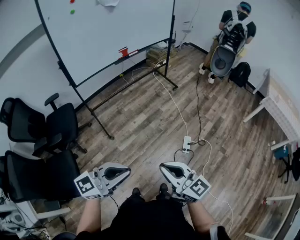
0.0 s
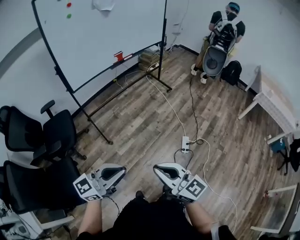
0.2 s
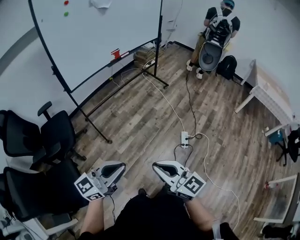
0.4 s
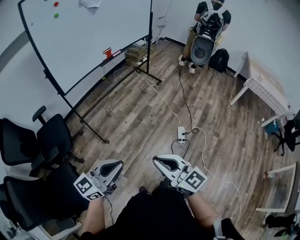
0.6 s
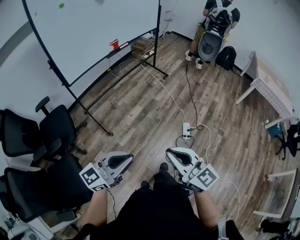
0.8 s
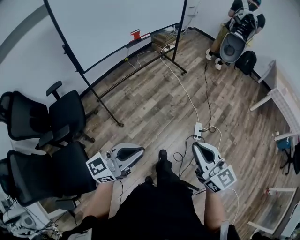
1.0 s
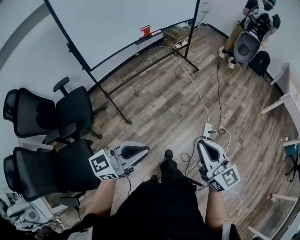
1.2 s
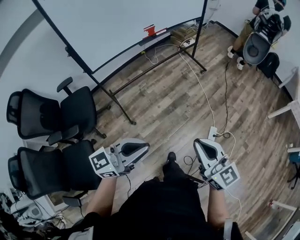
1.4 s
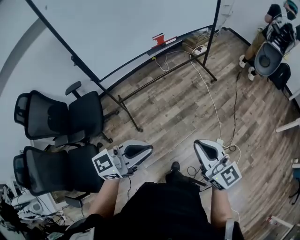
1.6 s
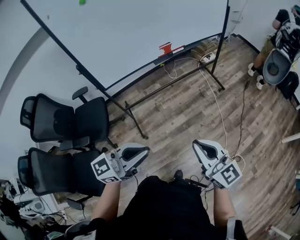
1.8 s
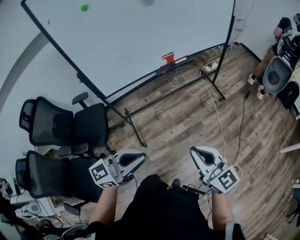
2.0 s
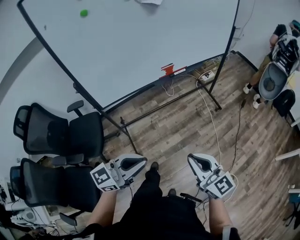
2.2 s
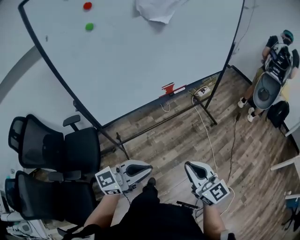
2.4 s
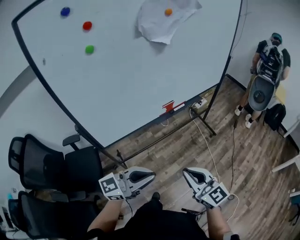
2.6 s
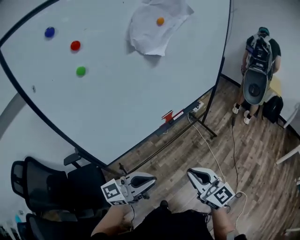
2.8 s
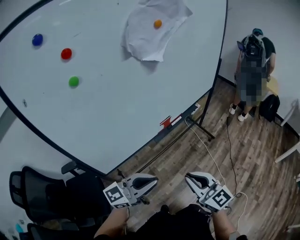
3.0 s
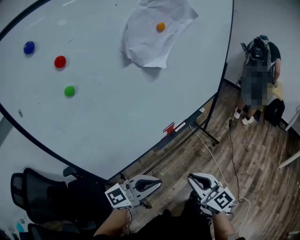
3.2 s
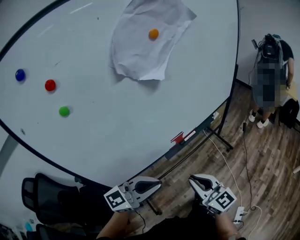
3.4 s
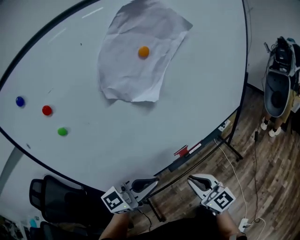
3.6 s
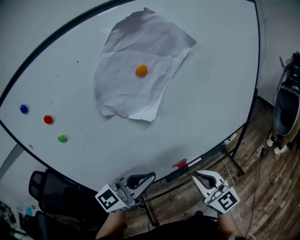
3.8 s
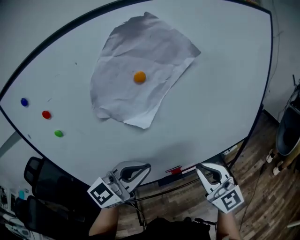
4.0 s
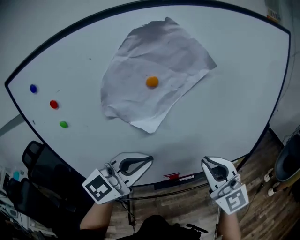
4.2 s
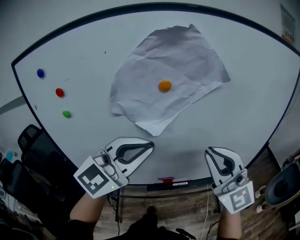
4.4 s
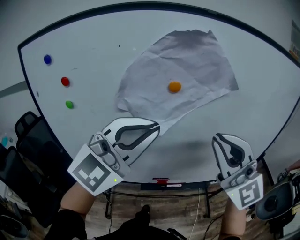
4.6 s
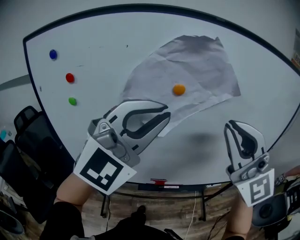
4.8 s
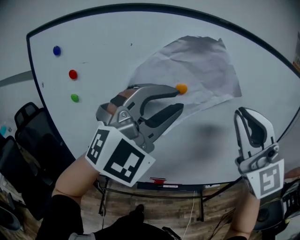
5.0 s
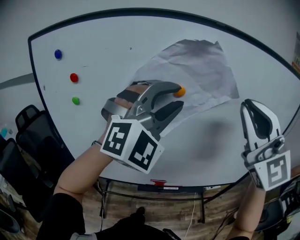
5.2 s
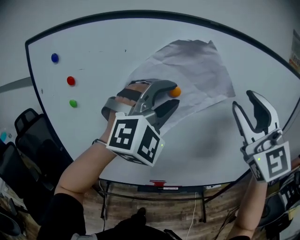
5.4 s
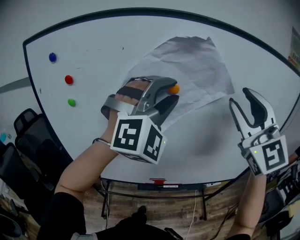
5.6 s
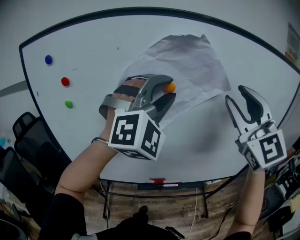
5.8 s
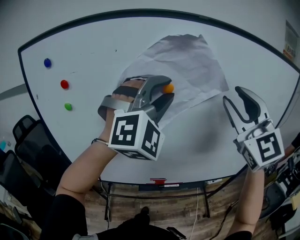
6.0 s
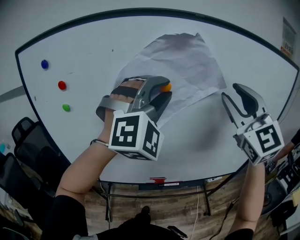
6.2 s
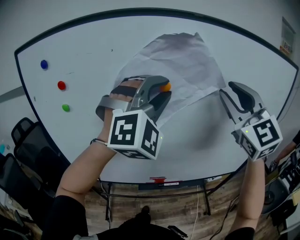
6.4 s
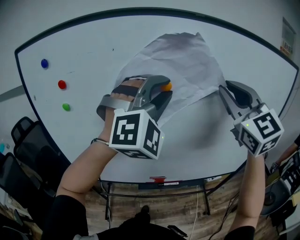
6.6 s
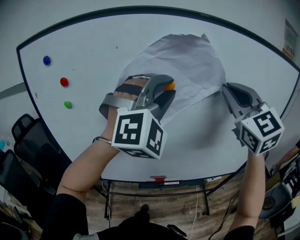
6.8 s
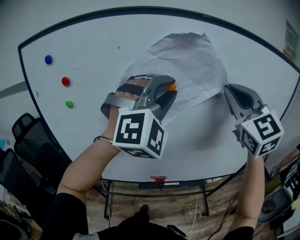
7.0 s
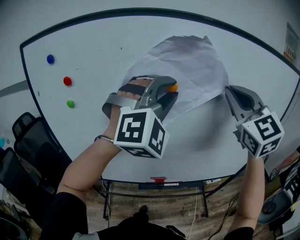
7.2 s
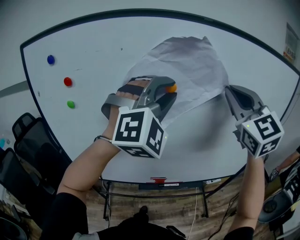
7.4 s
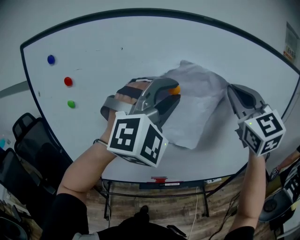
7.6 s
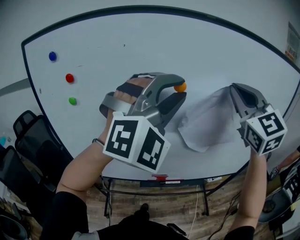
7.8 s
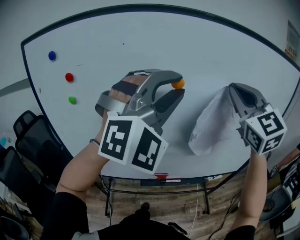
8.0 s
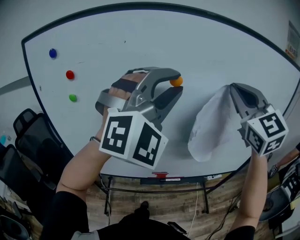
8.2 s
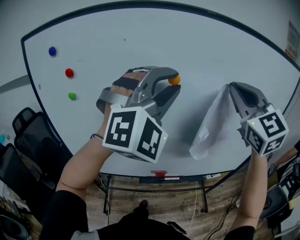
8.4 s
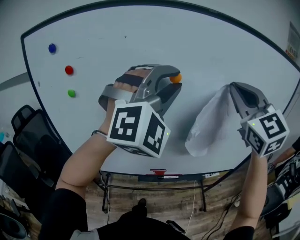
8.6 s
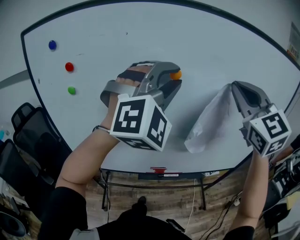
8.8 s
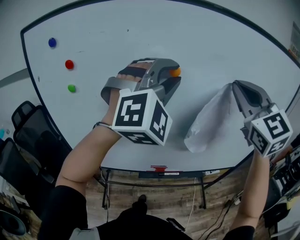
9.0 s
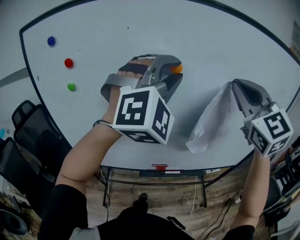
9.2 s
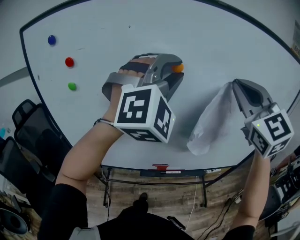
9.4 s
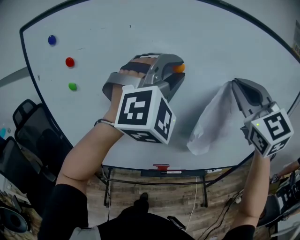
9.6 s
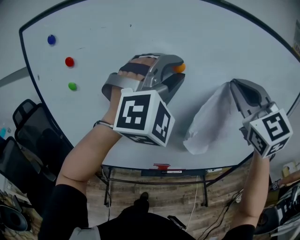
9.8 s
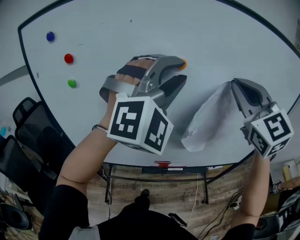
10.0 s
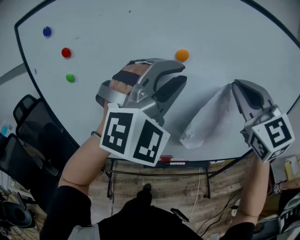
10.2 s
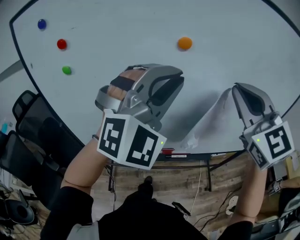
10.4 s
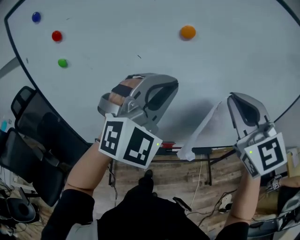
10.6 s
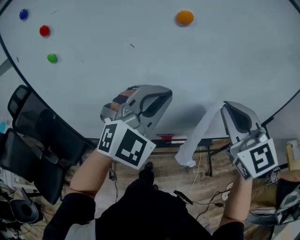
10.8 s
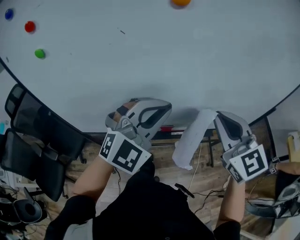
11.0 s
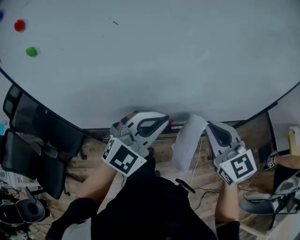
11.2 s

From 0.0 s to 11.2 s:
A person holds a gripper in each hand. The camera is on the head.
From 0.0 s to 1.6 s: The left gripper shifts approximately 25 cm forward and to the left. The right gripper moves forward, approximately 25 cm.
From 1.6 s to 3.2 s: The grippers both shift forward and to the left by approximately 40 cm.
From 3.2 s to 4.8 s: Both grippers move upward, approximately 35 cm. The left gripper changes its angle by approximately 90 degrees, while the right gripper turns by some 60 degrees.
From 4.8 s to 6.4 s: The left gripper goes roughly 10 cm forward, and turns by roughly 30 degrees. The right gripper goes approximately 10 cm forward and to the right, and opens.
From 6.4 s to 8.0 s: The left gripper goes some 5 cm backward. Meanwhile the right gripper closes its fingers.
From 8.0 s to 9.6 s: The left gripper moves forward, some 5 cm.
From 9.6 s to 11.2 s: Both grippers travel together downward, approximately 30 cm. The left gripper rolls counterclockwise, seen from behind, by about 40 degrees, and closes; the right gripper swivels some 30 degrees.

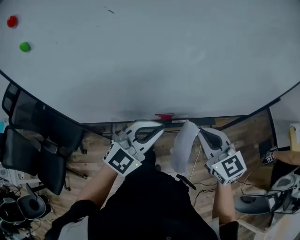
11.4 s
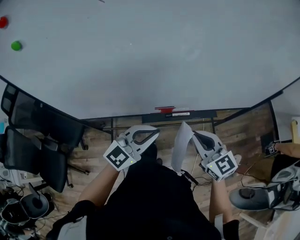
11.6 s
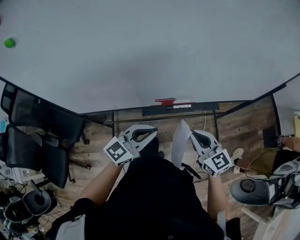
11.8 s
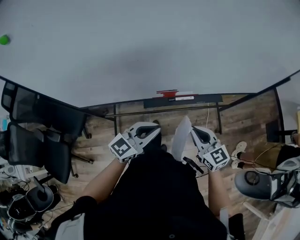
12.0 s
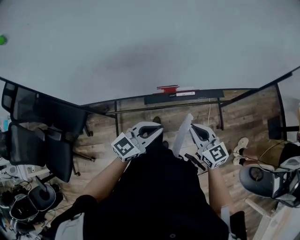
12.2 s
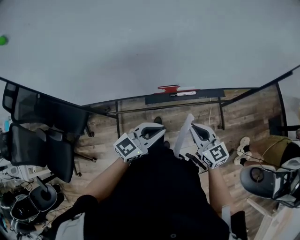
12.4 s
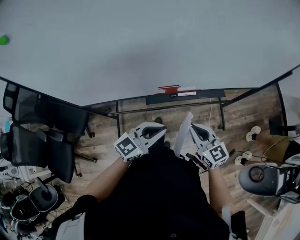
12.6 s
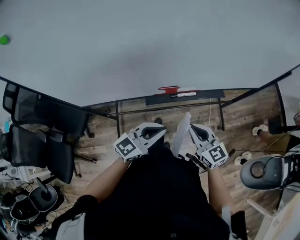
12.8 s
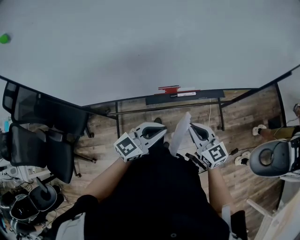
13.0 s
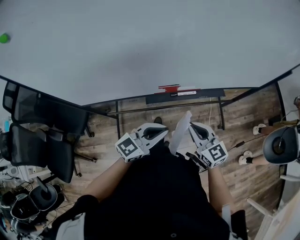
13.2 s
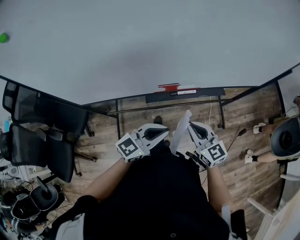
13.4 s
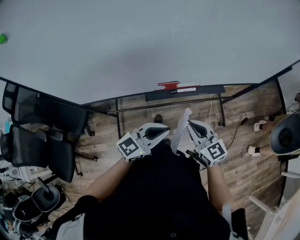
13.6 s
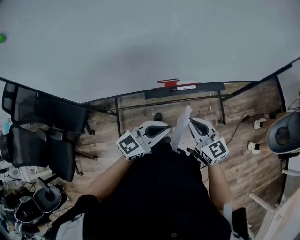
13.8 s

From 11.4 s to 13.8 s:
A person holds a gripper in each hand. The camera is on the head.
From 11.4 s to 12.6 s: The two grippers go about 15 cm downward. The left gripper swivels some 30 degrees.
From 12.6 s to 13.8 s: The grippers move only a little.

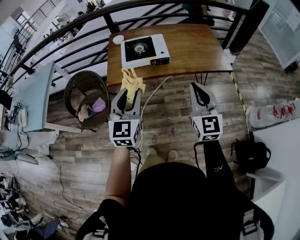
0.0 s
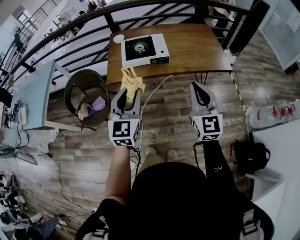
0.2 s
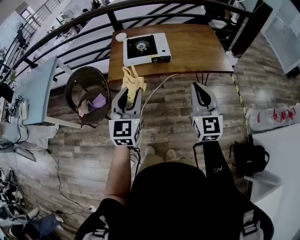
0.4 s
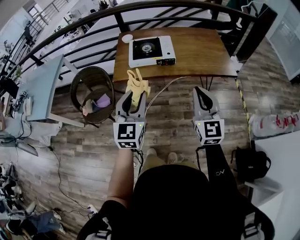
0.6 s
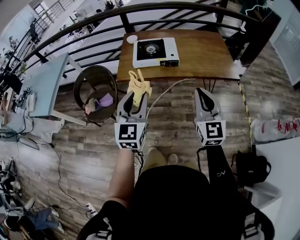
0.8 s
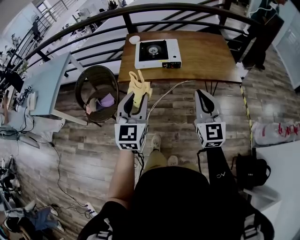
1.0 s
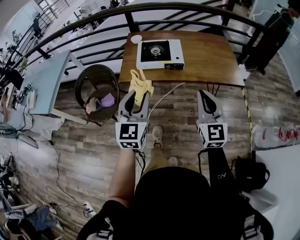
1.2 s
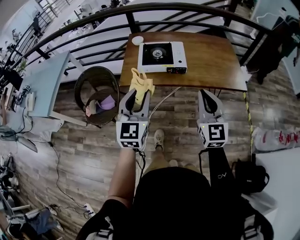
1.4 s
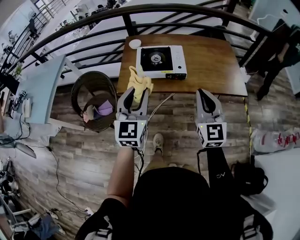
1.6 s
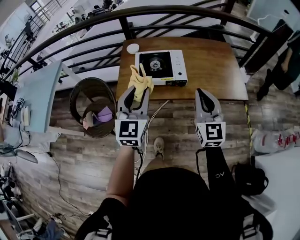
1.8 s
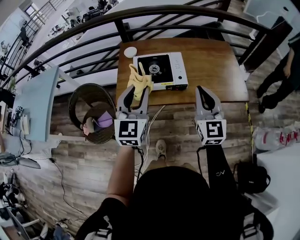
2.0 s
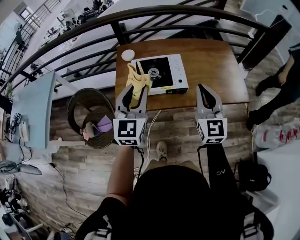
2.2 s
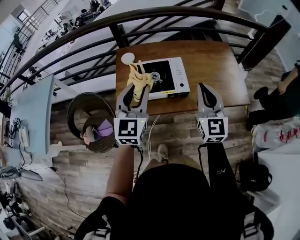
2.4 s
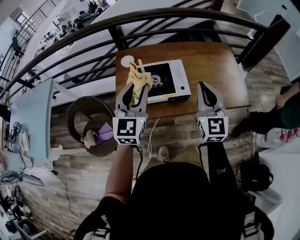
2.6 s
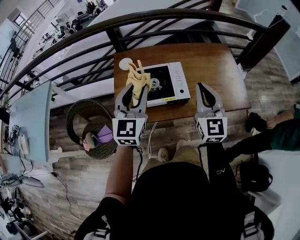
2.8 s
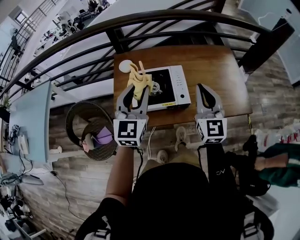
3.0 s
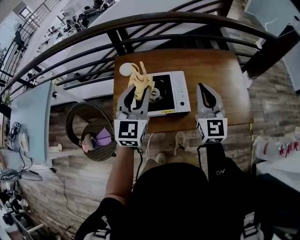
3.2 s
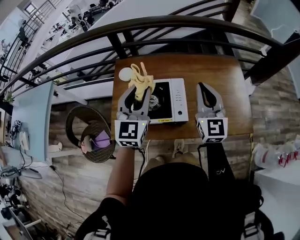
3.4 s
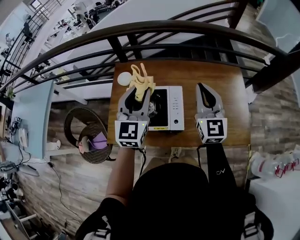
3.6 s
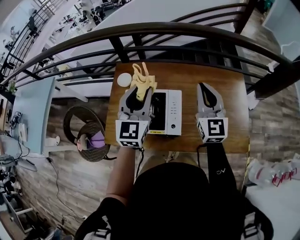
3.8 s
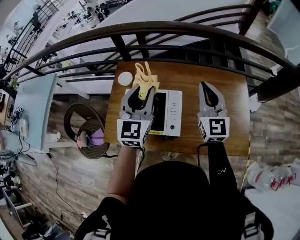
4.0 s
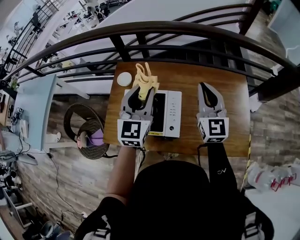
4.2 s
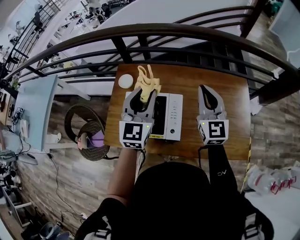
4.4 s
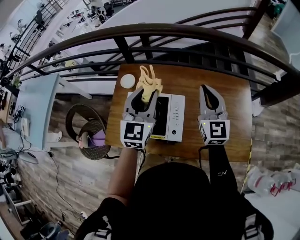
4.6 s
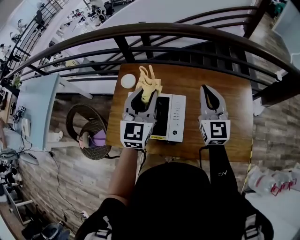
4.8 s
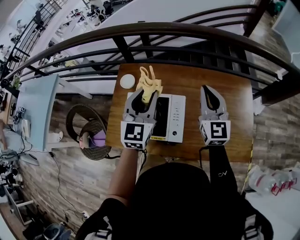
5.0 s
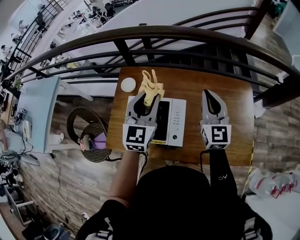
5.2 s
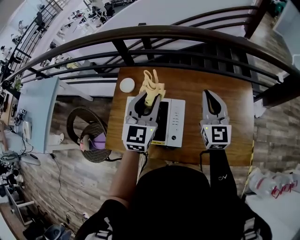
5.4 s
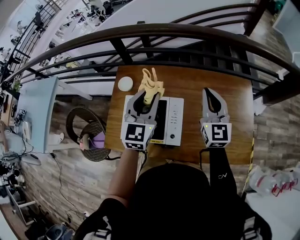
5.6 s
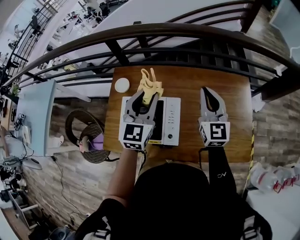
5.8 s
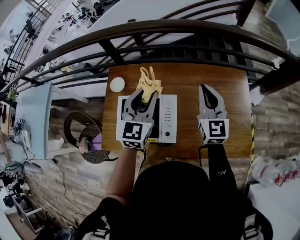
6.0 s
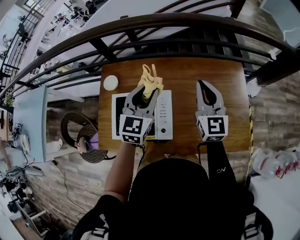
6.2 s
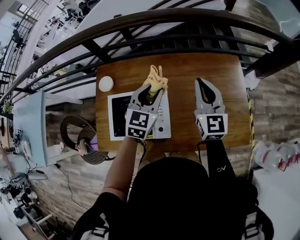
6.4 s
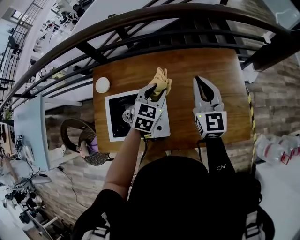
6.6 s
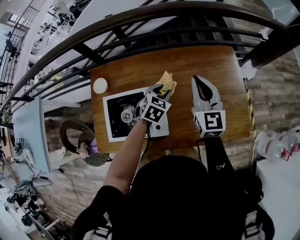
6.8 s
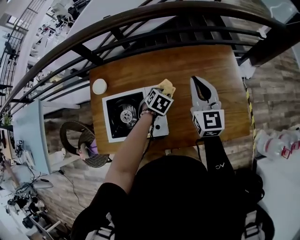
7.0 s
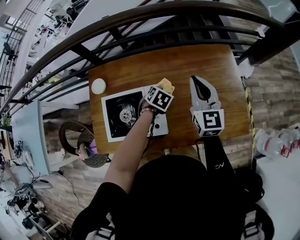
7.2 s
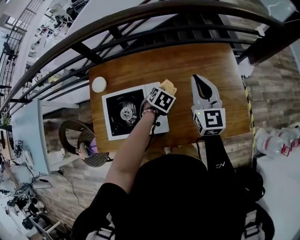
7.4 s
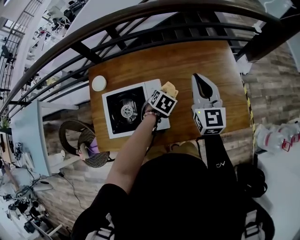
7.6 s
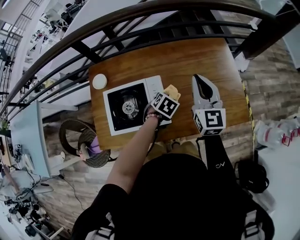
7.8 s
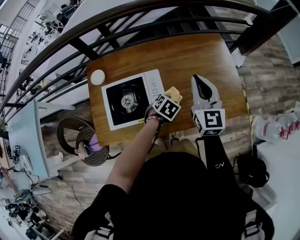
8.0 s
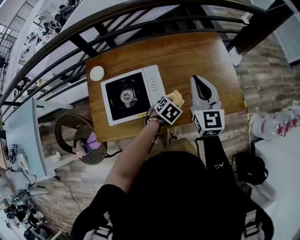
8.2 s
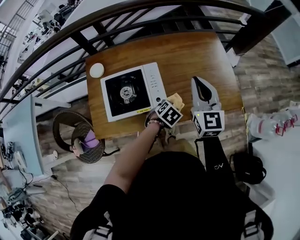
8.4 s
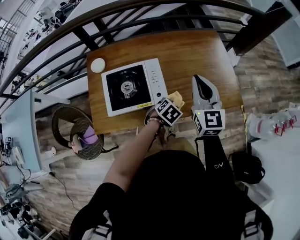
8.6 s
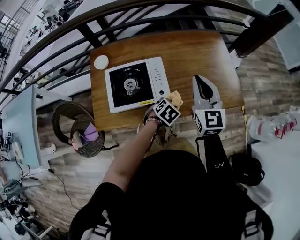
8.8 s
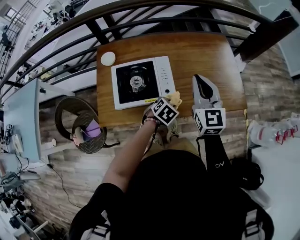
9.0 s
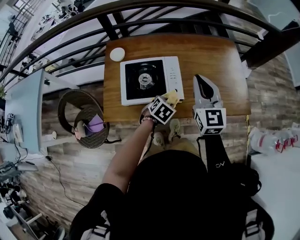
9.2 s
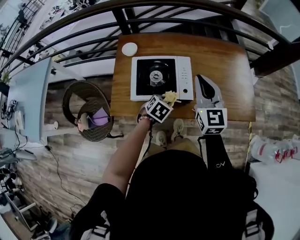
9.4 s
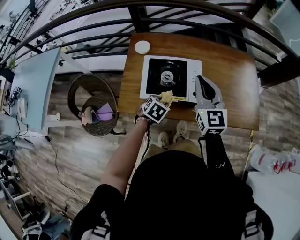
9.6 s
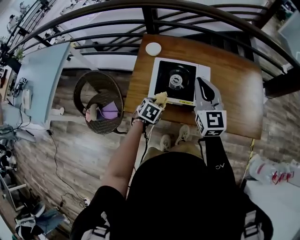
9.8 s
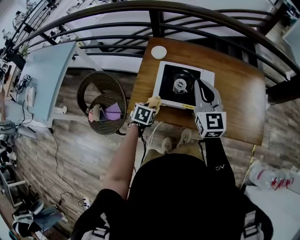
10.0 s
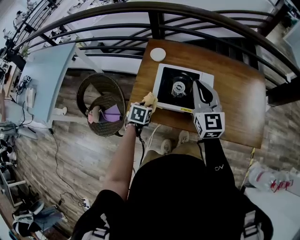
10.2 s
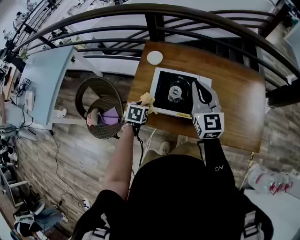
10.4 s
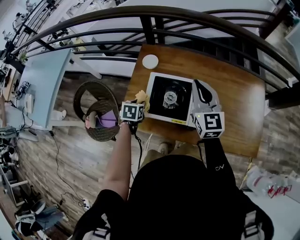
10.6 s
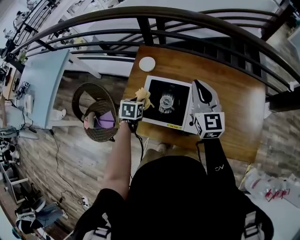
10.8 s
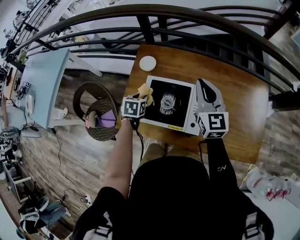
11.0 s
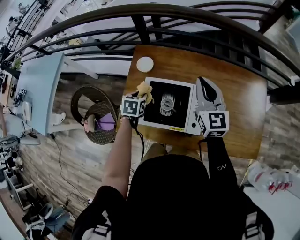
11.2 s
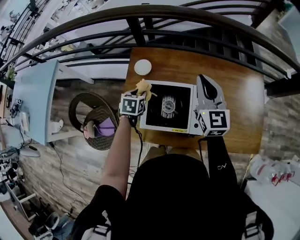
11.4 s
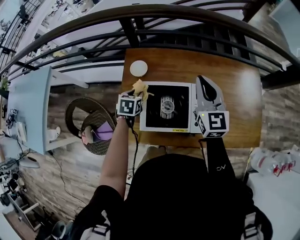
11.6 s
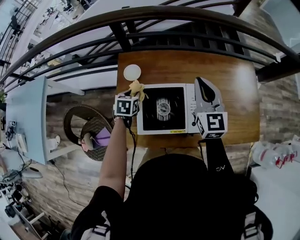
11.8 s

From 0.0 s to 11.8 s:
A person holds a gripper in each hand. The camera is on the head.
From 0.0 s to 1.4 s: The right gripper travels forward by approximately 5 cm.
From 1.4 s to 3.0 s: Both grippers move forward, roughly 30 cm.
From 3.0 s to 4.4 s: The right gripper moves forward, some 20 cm. Meanwhile the left gripper moves forward and to the right, roughly 20 cm.
From 4.4 s to 6.0 s: The right gripper moves some 5 cm; the left gripper ends up about 5 cm from where it was.
From 6.0 s to 7.4 s: The left gripper is displaced downward and to the right by some 30 cm, and points its fingers roughly 50 degrees further downward. Meanwhile the right gripper ends up some 5 cm from where it was.
From 7.4 s to 8.8 s: The left gripper heads backward and to the right, covering some 25 cm. Meanwhile the right gripper travels backward by approximately 20 cm.
From 8.8 s to 10.4 s: The left gripper changes place by about 35 cm, and twists some 40 degrees counterclockwise, seen from behind. Meanwhile the right gripper changes place by roughly 25 cm, and changes its angle by roughly 20 degrees.
From 10.4 s to 11.8 s: The left gripper shifts roughly 20 cm forward. Meanwhile the right gripper goes roughly 15 cm forward and to the right.
